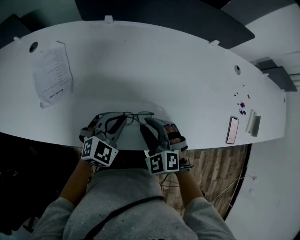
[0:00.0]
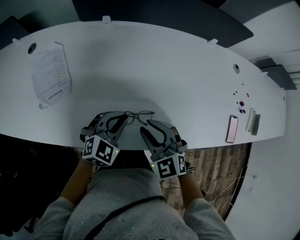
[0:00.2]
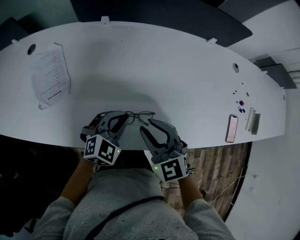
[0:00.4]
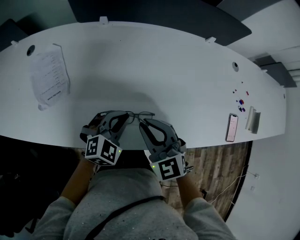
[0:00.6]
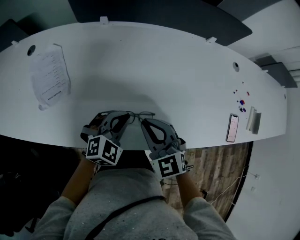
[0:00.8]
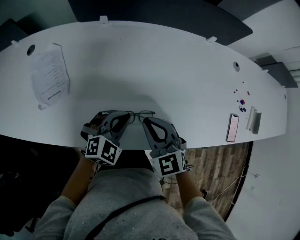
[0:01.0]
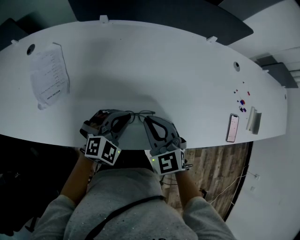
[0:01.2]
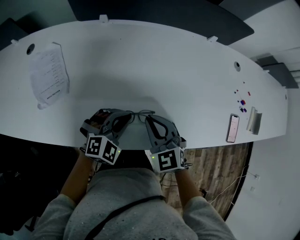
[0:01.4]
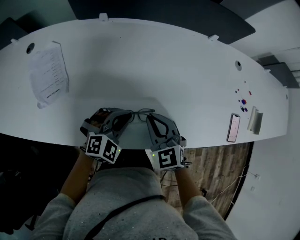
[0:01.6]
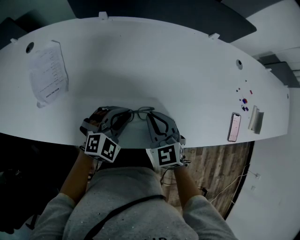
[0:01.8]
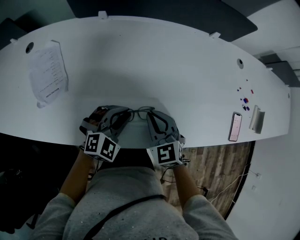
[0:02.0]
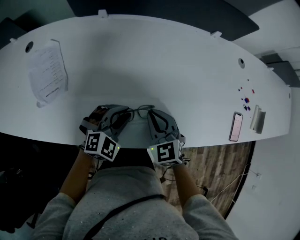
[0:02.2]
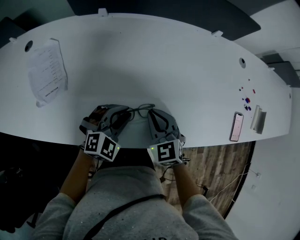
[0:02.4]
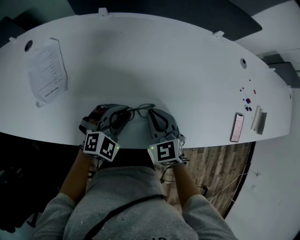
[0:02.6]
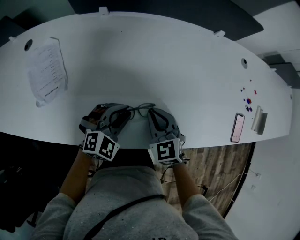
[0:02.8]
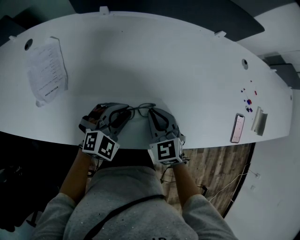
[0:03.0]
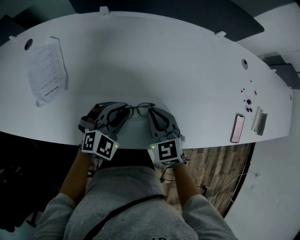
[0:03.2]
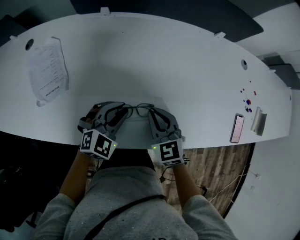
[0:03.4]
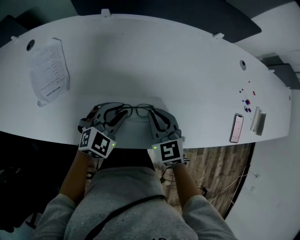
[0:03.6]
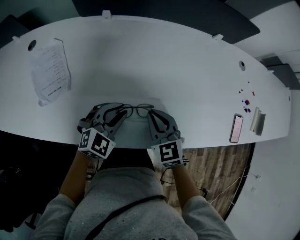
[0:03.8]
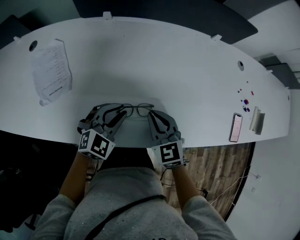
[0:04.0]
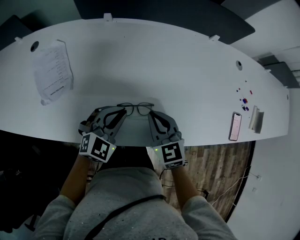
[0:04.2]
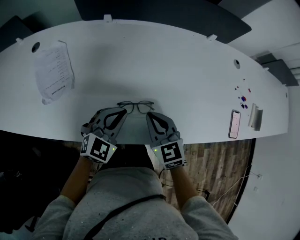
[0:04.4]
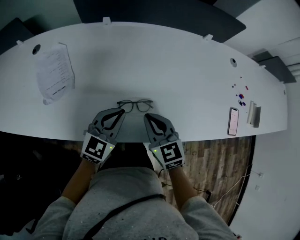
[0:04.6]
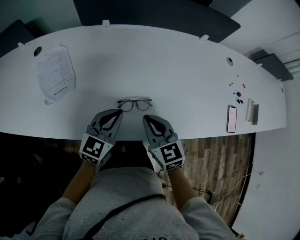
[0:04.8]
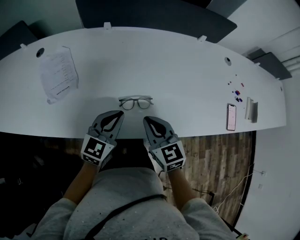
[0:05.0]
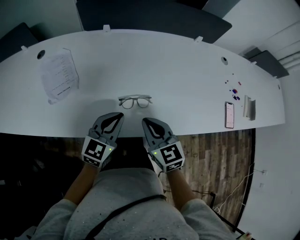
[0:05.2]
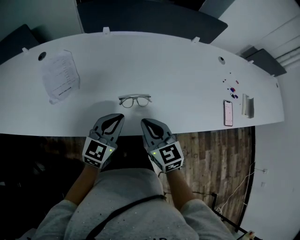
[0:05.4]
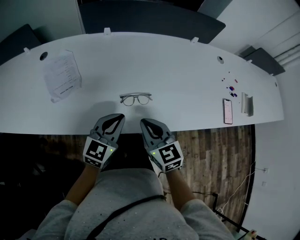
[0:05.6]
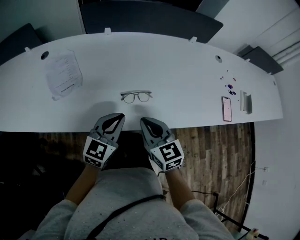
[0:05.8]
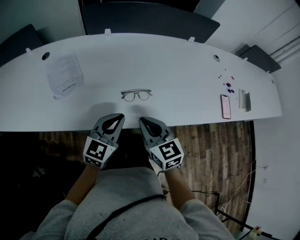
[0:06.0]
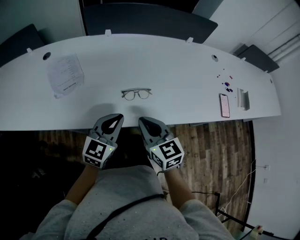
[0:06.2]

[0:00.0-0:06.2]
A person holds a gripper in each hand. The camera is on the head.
0:00.0 to 0:01.6: The right gripper changes its angle by about 30 degrees, and closes.
0:01.6 to 0:03.2: The grippers move only a little.
0:03.2 to 0:04.6: The left gripper moves upward, approximately 5 cm, changes its angle by approximately 30 degrees, and closes up; the right gripper moves upward and backward, roughly 10 cm.
0:04.6 to 0:06.2: The left gripper heads backward, covering about 15 cm, while the right gripper heads backward and upward, covering approximately 15 cm.

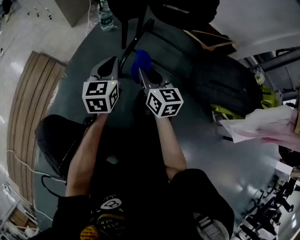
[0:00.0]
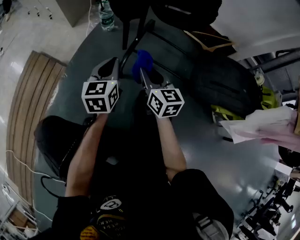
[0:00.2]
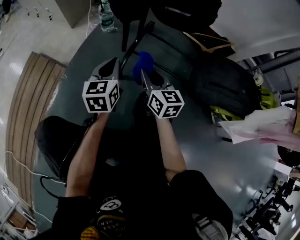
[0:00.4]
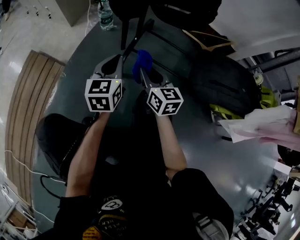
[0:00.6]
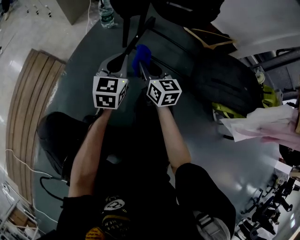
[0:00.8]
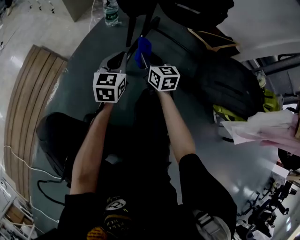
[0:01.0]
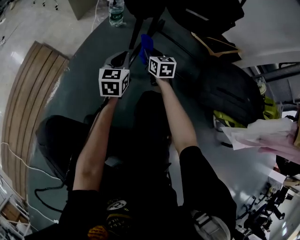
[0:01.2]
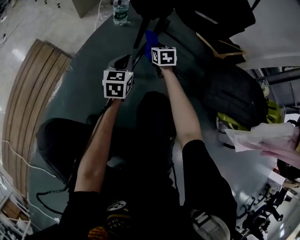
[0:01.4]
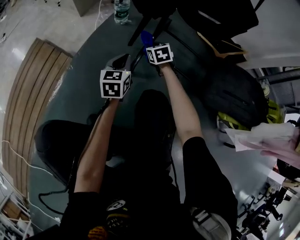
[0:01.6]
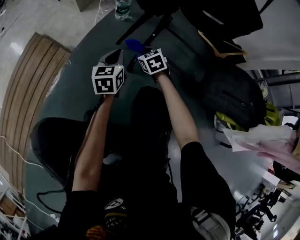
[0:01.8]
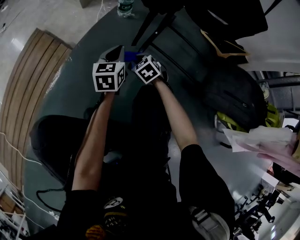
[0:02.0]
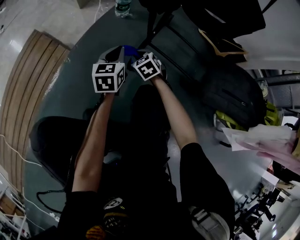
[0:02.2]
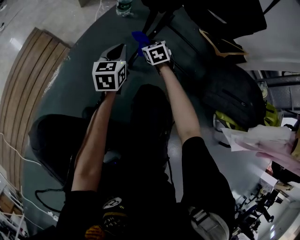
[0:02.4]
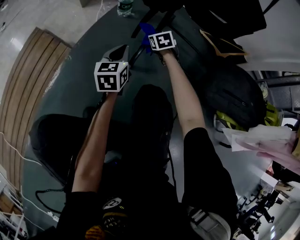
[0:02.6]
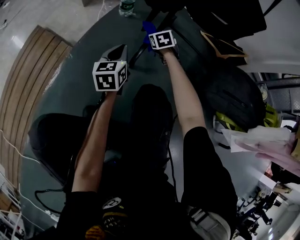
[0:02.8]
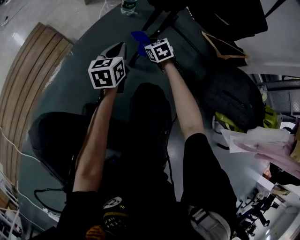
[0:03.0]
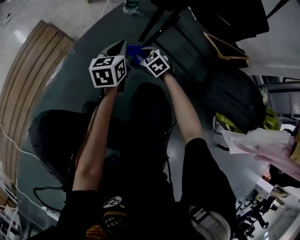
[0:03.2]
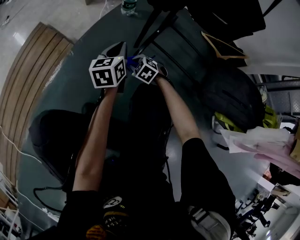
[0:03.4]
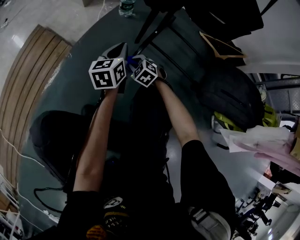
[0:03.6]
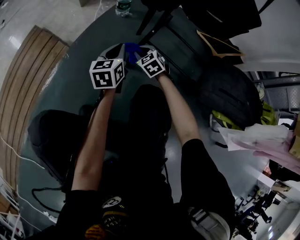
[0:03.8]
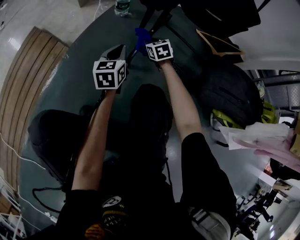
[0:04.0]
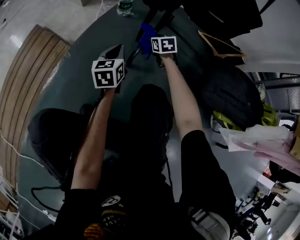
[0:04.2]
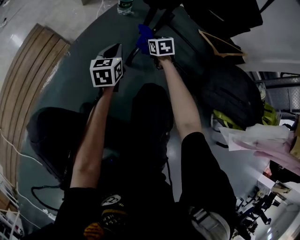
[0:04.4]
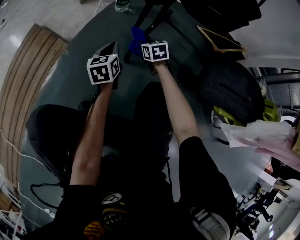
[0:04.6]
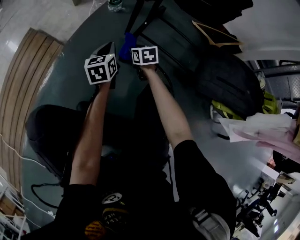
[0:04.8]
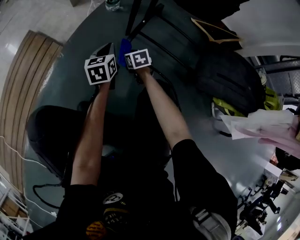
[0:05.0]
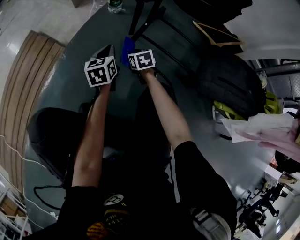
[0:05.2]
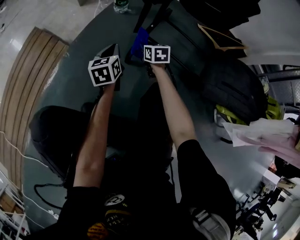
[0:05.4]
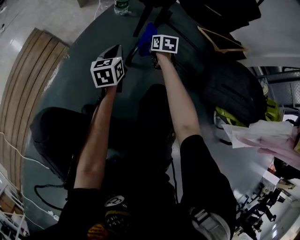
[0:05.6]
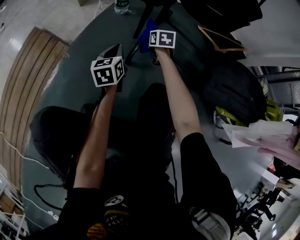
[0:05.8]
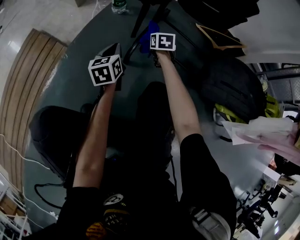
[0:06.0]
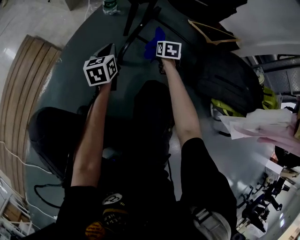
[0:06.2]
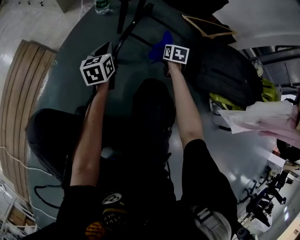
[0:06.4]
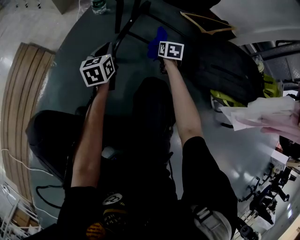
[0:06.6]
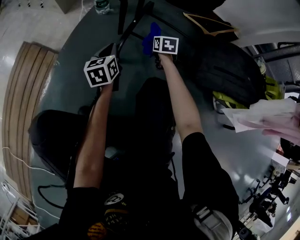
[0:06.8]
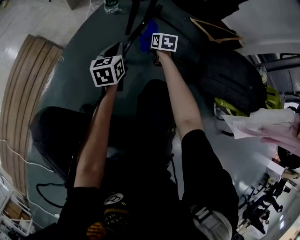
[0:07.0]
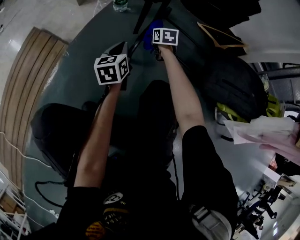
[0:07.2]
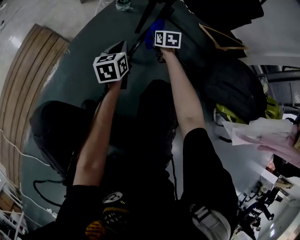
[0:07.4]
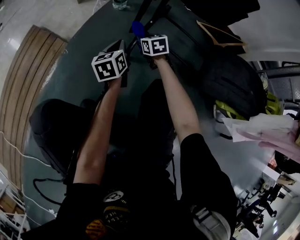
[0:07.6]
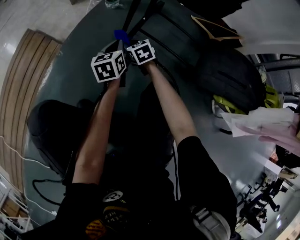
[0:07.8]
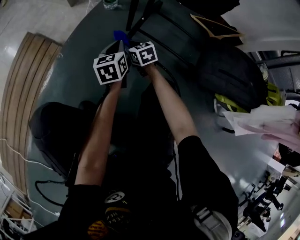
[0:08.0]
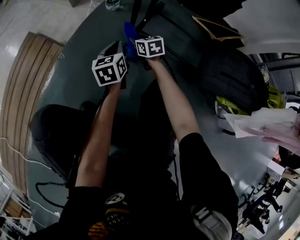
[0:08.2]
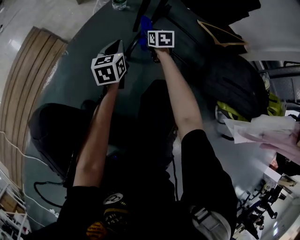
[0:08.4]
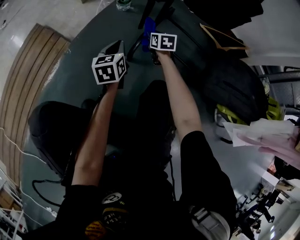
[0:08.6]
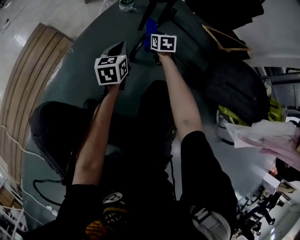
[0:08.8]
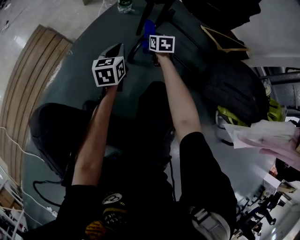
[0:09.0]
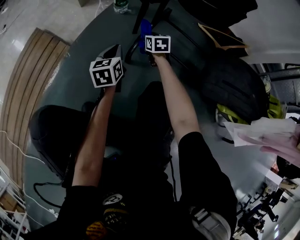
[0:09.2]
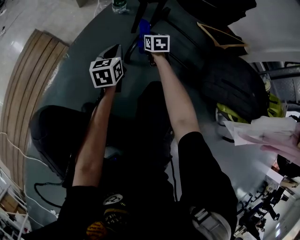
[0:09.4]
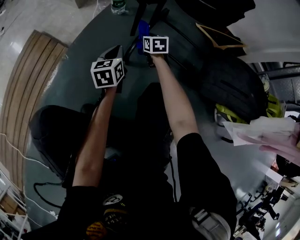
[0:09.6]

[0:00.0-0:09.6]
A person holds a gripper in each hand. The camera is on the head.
0:00.0 to 0:01.6: The right gripper goes roughly 25 cm downward and forward, and tips its fingers downward by some 30 degrees, while the left gripper heads downward, covering some 10 cm.
0:01.6 to 0:03.2: The left gripper moves roughly 5 cm. Meanwhile the right gripper swings forward and backward, approximately 15 cm each way, with 2 reversals, and turns by approximately 30 degrees.
0:03.2 to 0:04.8: The left gripper ends up some 5 cm from where it was. The right gripper swings forward and backward, approximately 15 cm each way, with 2 reversals, and rolls clockwise, seen from behind, by roughly 40 degrees.
0:04.8 to 0:06.4: The right gripper goes approximately 25 cm to the right, and rotates approximately 30 degrees.
0:06.4 to 0:08.0: The right gripper goes some 25 cm to the left, and changes its angle by some 40 degrees.
0:08.0 to 0:09.6: The right gripper moves forward and to the right, about 10 cm.

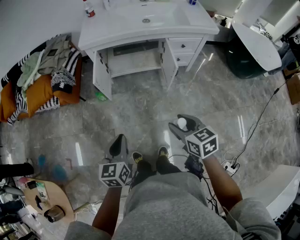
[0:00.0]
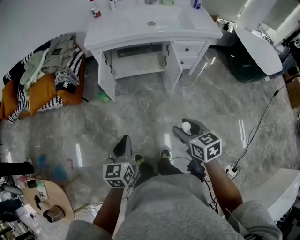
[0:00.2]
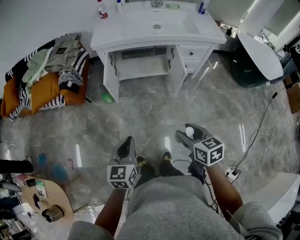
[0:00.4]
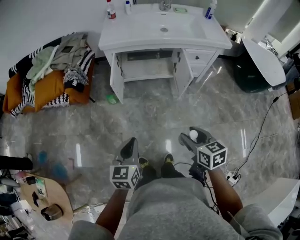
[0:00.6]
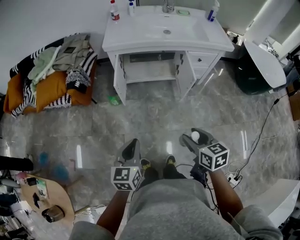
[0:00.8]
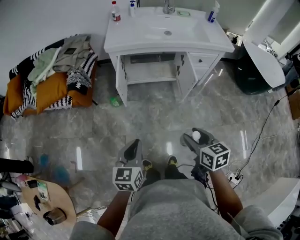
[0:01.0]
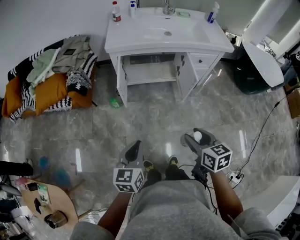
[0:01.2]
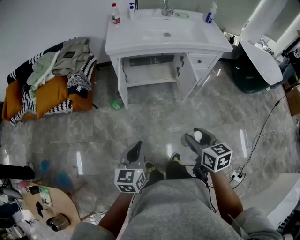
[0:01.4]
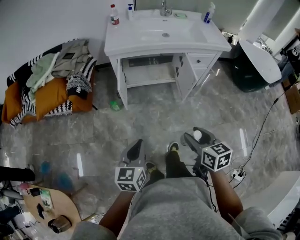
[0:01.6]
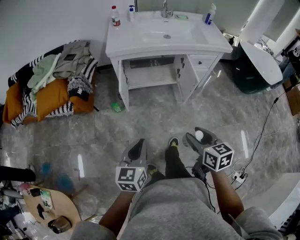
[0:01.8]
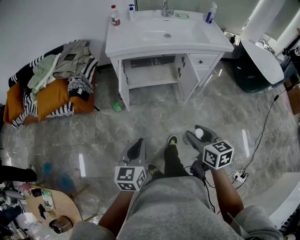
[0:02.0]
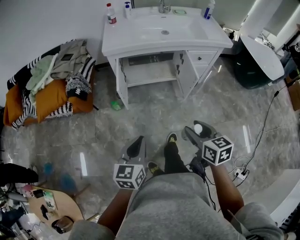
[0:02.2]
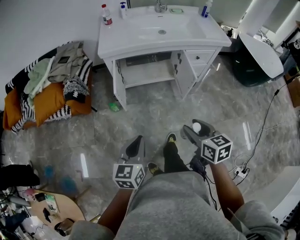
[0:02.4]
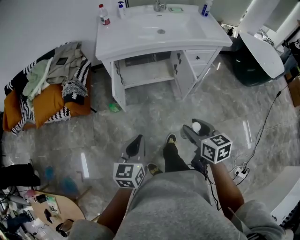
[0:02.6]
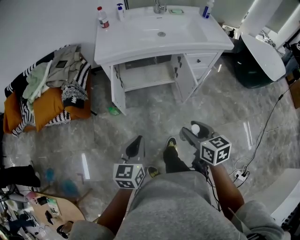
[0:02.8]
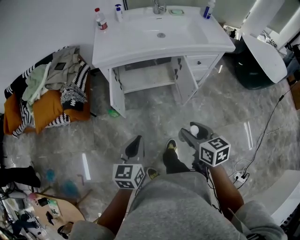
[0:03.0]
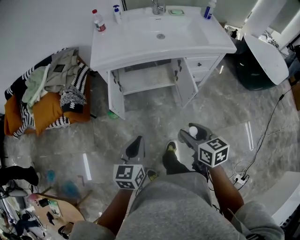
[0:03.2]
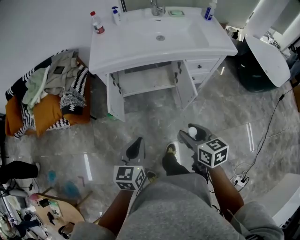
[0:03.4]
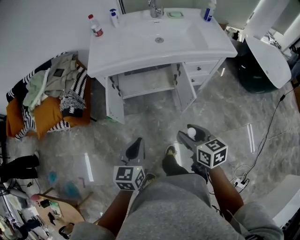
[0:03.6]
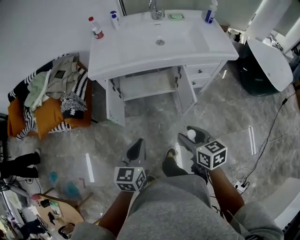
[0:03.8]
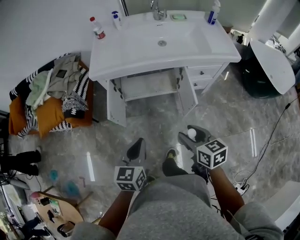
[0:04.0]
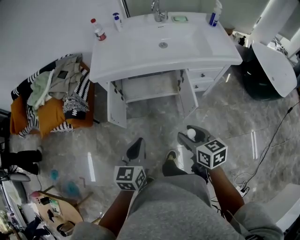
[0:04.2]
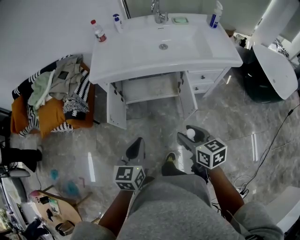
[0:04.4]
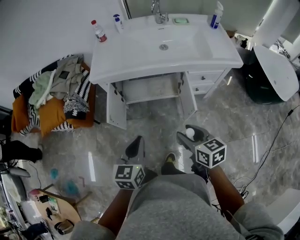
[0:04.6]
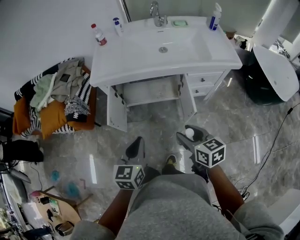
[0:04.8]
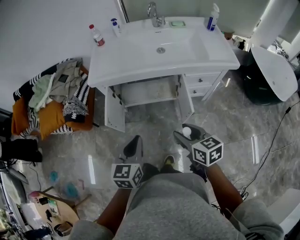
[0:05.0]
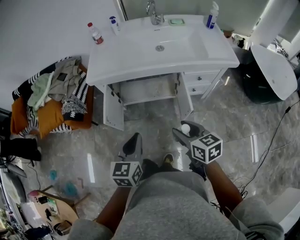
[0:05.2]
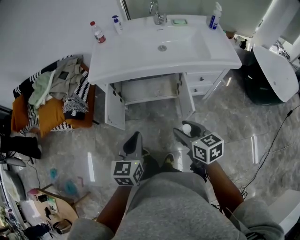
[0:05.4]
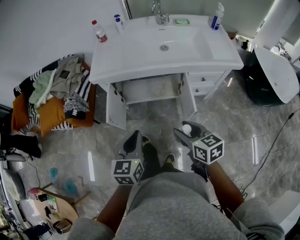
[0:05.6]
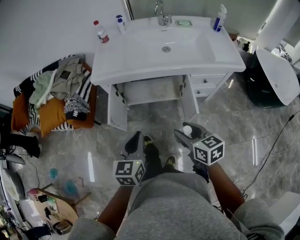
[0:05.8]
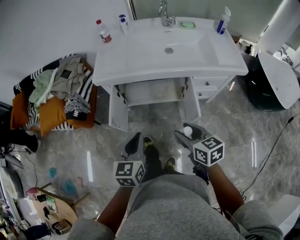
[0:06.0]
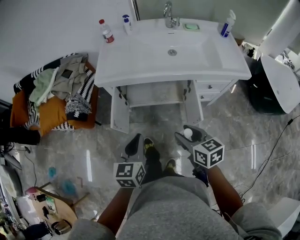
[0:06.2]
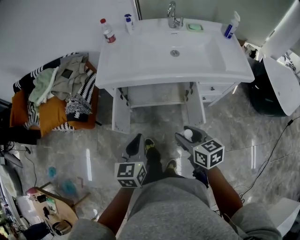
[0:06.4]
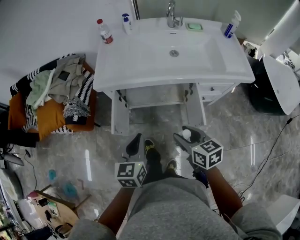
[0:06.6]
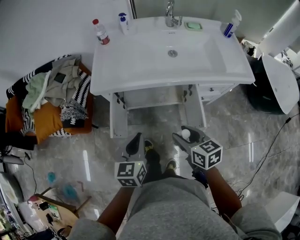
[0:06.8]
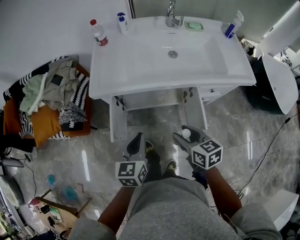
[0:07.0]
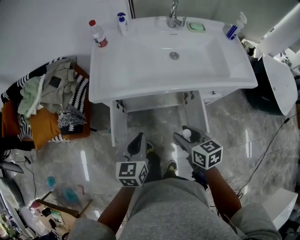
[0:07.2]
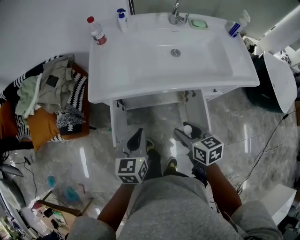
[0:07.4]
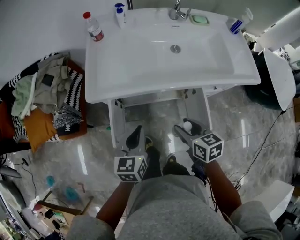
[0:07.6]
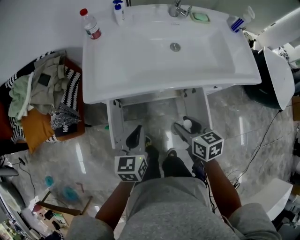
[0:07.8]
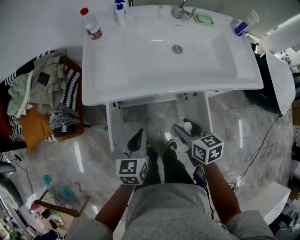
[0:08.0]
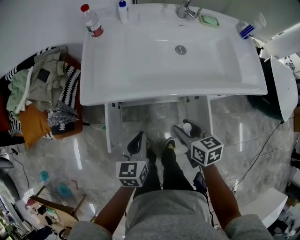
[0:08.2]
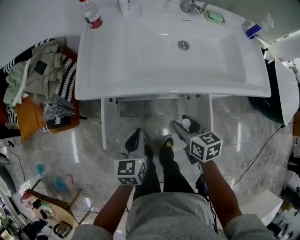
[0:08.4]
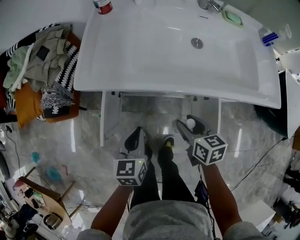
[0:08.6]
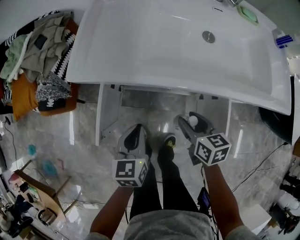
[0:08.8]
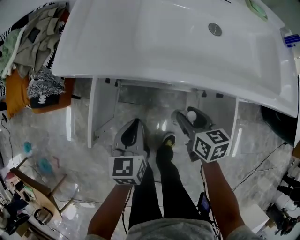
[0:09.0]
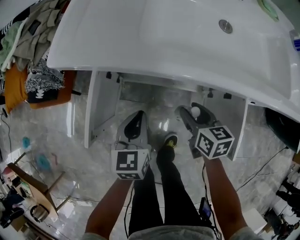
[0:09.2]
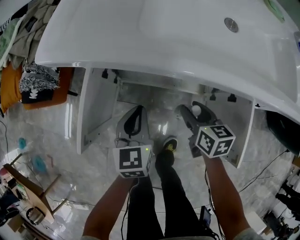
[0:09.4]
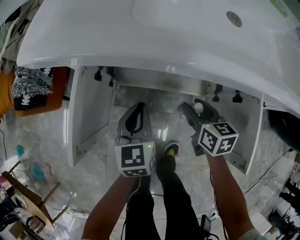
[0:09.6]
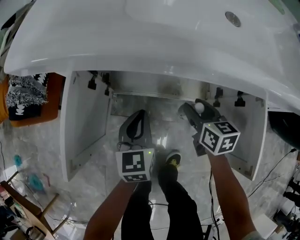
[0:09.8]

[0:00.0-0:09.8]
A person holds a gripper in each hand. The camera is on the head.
0:00.0 to 0:01.4: Both grippers travel together to the left, about 10 cm.
0:01.4 to 0:02.8: Both grippers travel together forward, some 10 cm.
0:02.8 to 0:04.2: Both grippers travel together forward and to the right, some 15 cm.
0:04.2 to 0:05.6: The grippers make only small movements.
0:05.6 to 0:07.0: Both grippers travel together forward, approximately 15 cm.
0:07.0 to 0:08.4: The left gripper travels downward and forward by some 15 cm. Meanwhile the right gripper travels forward and downward by approximately 15 cm.
0:08.4 to 0:09.8: The grippers both shift downward by some 25 cm.
